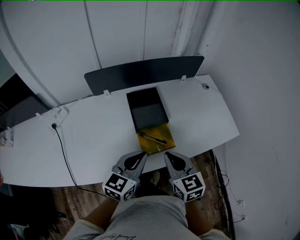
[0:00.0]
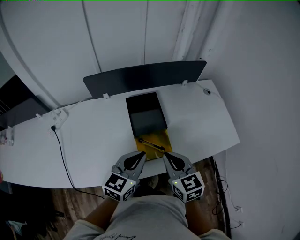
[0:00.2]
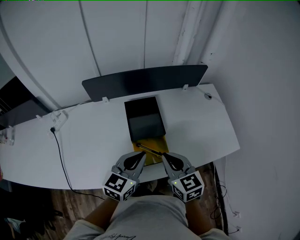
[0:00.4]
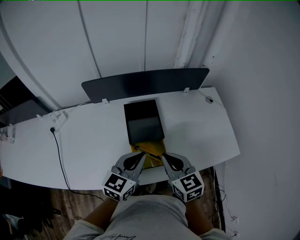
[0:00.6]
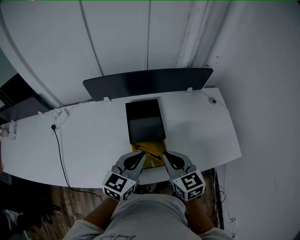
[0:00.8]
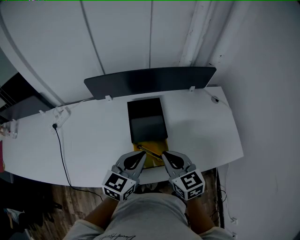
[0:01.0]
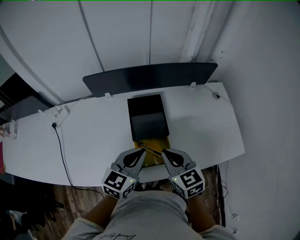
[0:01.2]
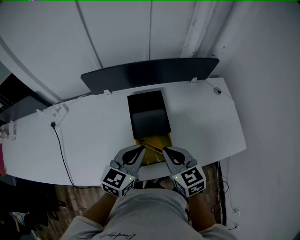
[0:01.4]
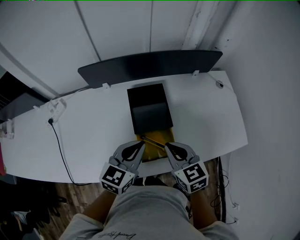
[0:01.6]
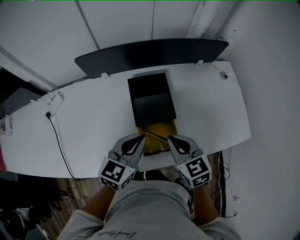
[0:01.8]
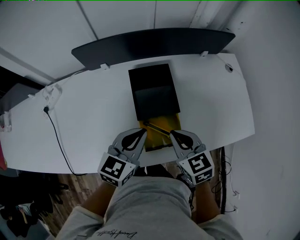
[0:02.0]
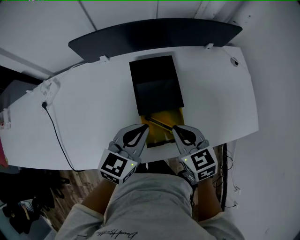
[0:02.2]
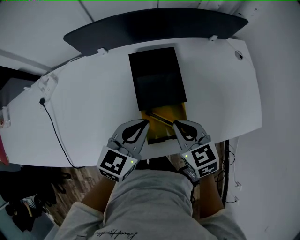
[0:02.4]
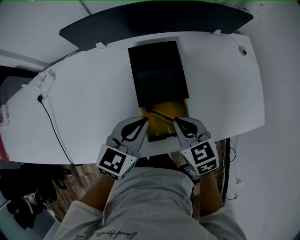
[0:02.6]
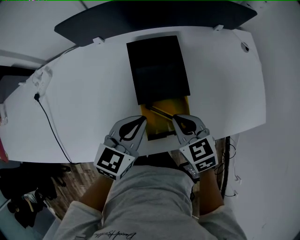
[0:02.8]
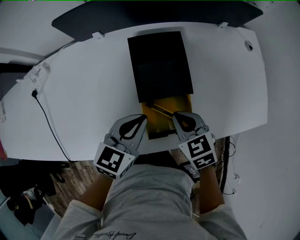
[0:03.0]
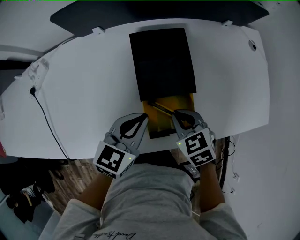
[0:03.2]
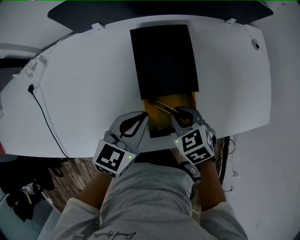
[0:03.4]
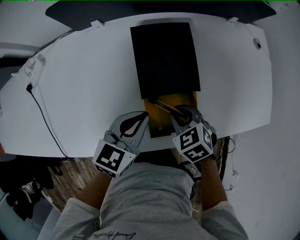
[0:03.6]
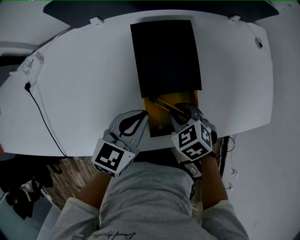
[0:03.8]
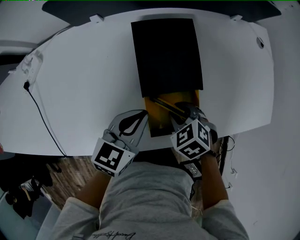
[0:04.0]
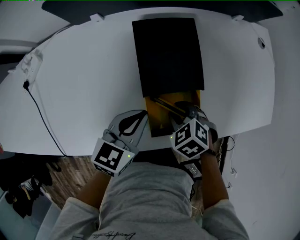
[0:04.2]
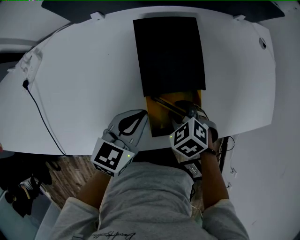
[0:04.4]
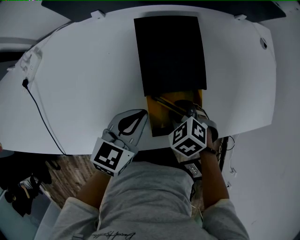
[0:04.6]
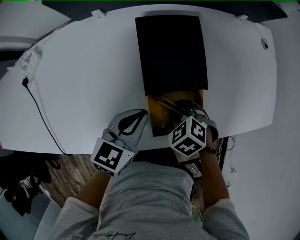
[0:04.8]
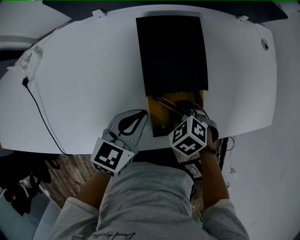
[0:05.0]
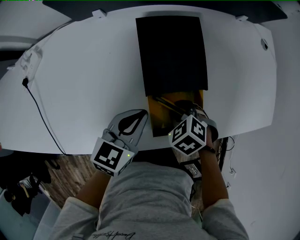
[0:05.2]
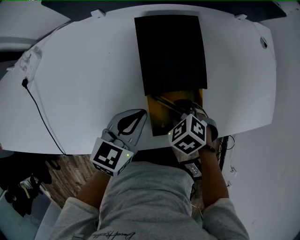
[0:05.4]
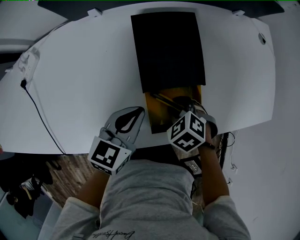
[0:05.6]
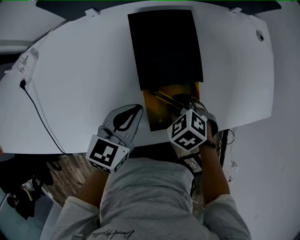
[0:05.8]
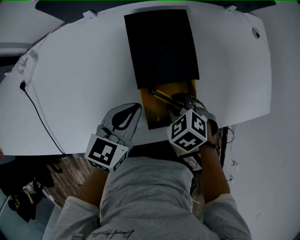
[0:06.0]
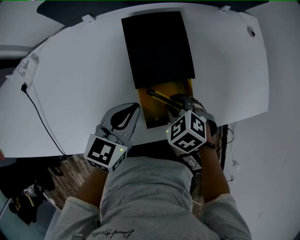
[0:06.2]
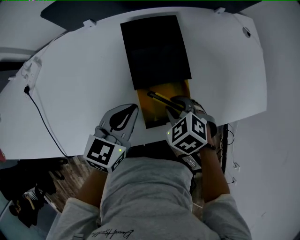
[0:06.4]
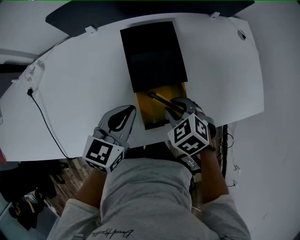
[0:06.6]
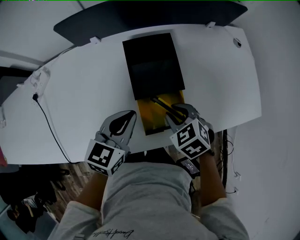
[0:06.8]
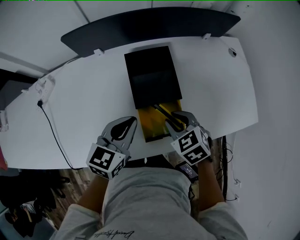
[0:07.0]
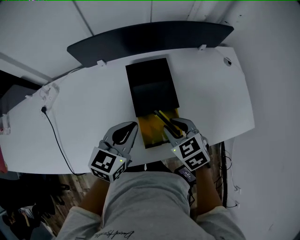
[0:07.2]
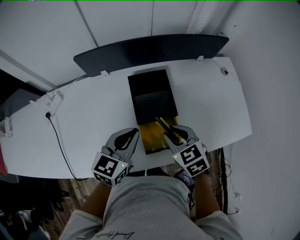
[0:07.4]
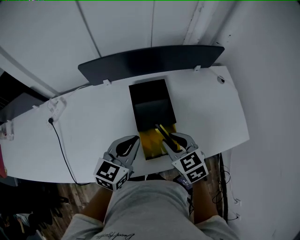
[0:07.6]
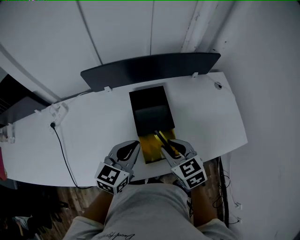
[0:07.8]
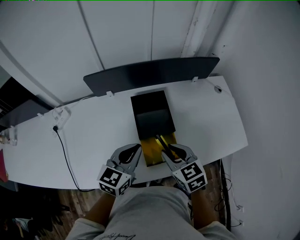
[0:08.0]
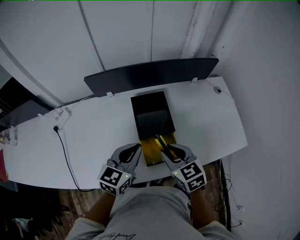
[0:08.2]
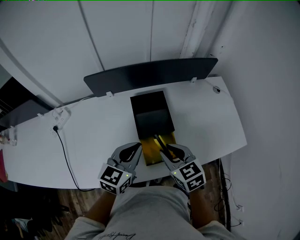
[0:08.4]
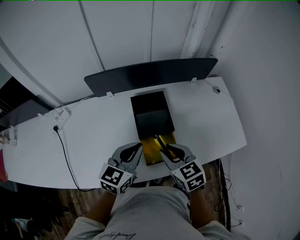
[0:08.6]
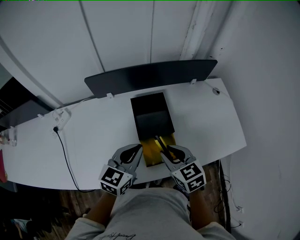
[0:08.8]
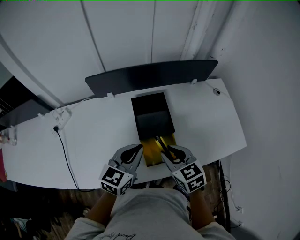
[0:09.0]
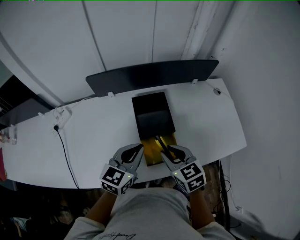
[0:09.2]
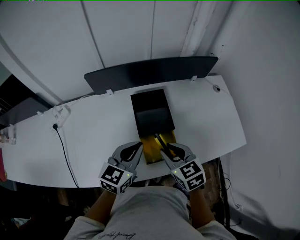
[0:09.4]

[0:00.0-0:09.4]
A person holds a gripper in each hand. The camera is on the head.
0:00.0 to 0:01.6: The two grippers go approximately 10 cm forward.
0:01.6 to 0:03.2: The grippers both shift downward by some 15 cm. The right gripper turns by about 20 degrees.
0:03.2 to 0:04.8: The right gripper moves downward, roughly 10 cm, turns by about 30 degrees, and opens its fingers.
0:04.8 to 0:06.2: The grippers move only a little.
0:06.2 to 0:07.8: The grippers both shift upward by approximately 15 cm. The right gripper tips its fingers upward by some 30 degrees.
0:07.8 to 0:09.4: The grippers stay close to where they were, moving slightly.

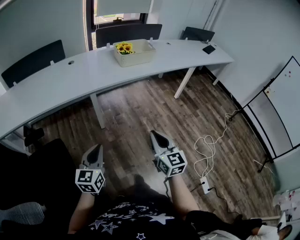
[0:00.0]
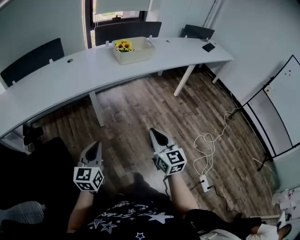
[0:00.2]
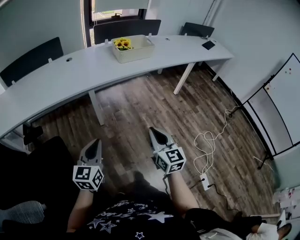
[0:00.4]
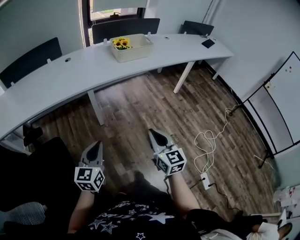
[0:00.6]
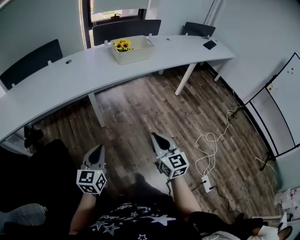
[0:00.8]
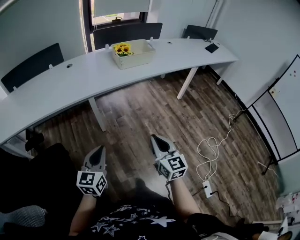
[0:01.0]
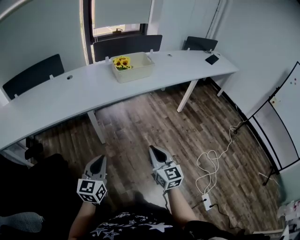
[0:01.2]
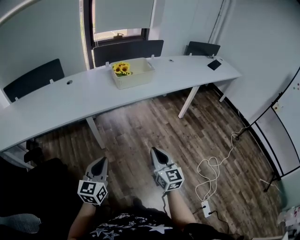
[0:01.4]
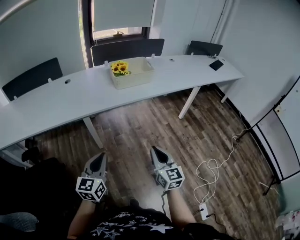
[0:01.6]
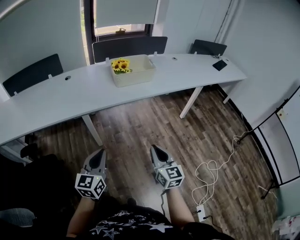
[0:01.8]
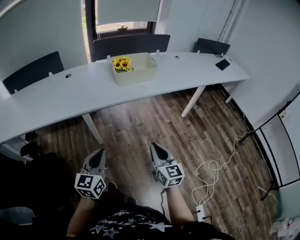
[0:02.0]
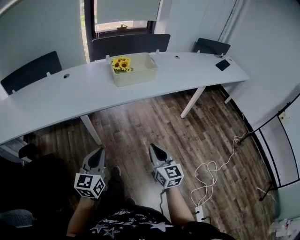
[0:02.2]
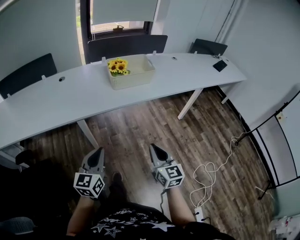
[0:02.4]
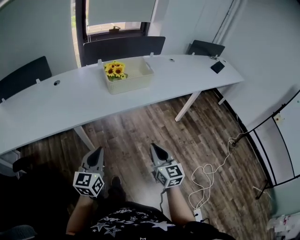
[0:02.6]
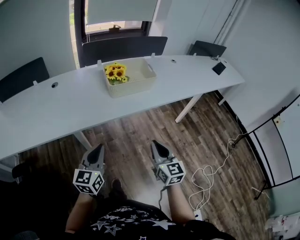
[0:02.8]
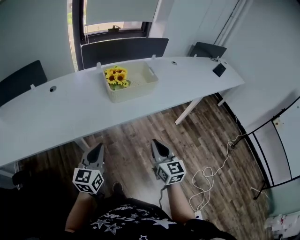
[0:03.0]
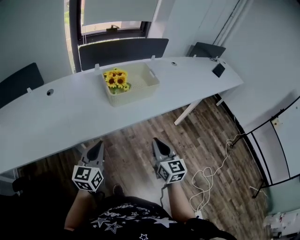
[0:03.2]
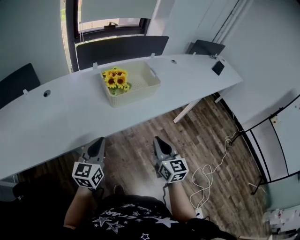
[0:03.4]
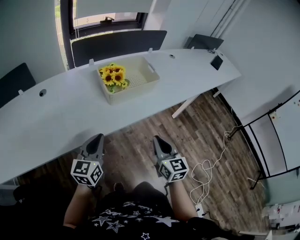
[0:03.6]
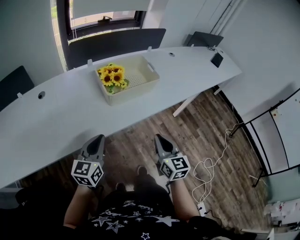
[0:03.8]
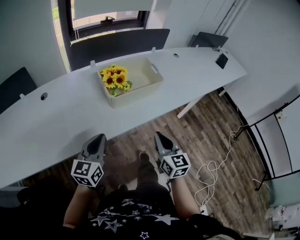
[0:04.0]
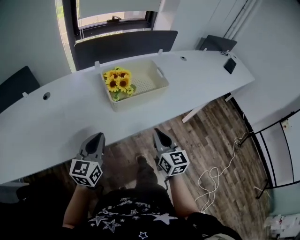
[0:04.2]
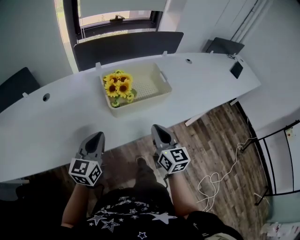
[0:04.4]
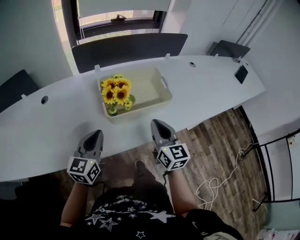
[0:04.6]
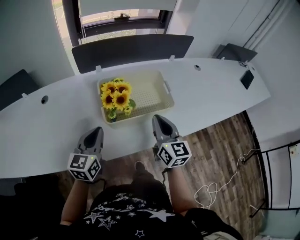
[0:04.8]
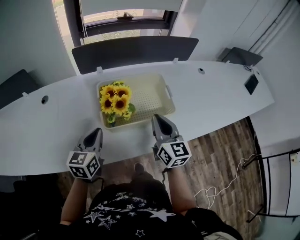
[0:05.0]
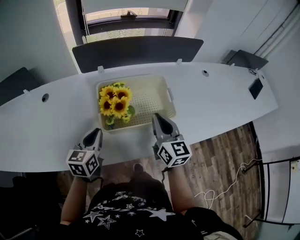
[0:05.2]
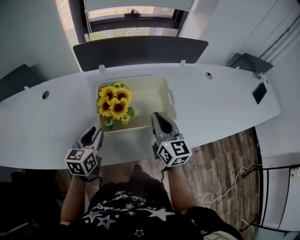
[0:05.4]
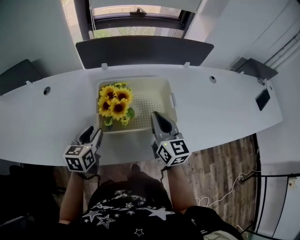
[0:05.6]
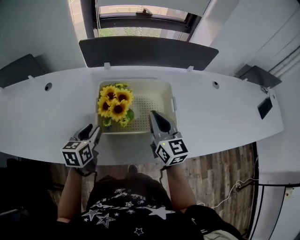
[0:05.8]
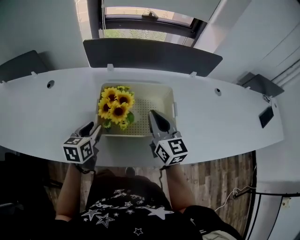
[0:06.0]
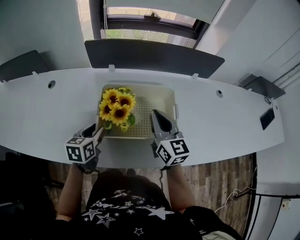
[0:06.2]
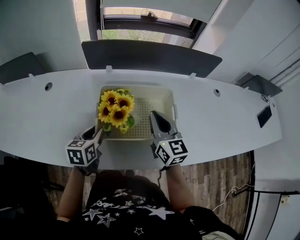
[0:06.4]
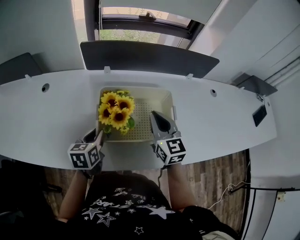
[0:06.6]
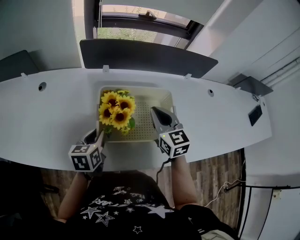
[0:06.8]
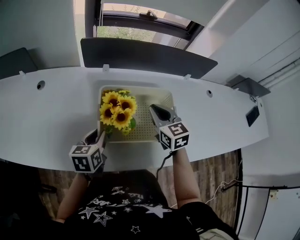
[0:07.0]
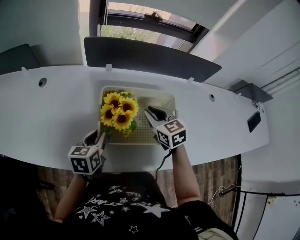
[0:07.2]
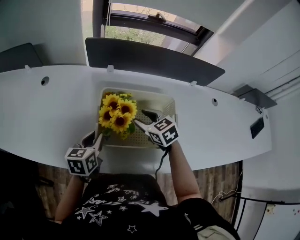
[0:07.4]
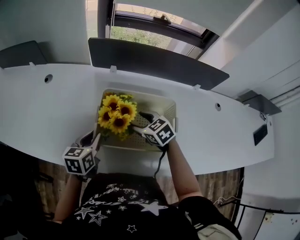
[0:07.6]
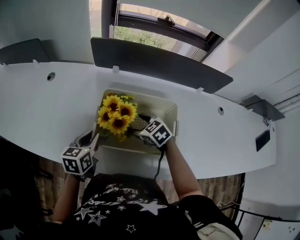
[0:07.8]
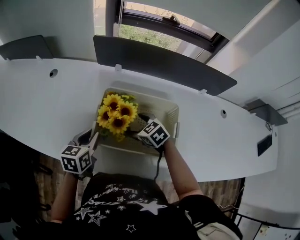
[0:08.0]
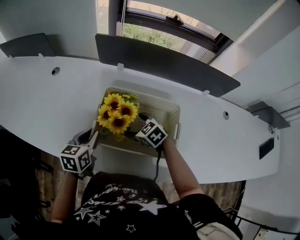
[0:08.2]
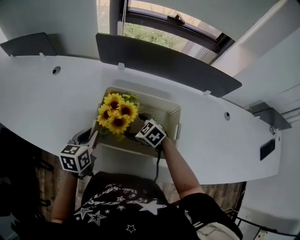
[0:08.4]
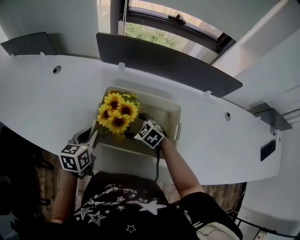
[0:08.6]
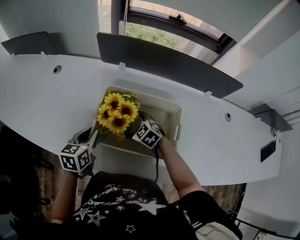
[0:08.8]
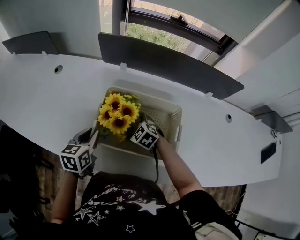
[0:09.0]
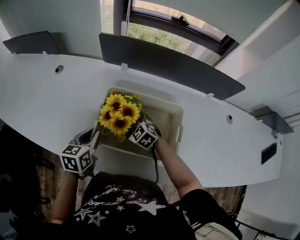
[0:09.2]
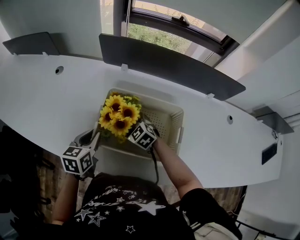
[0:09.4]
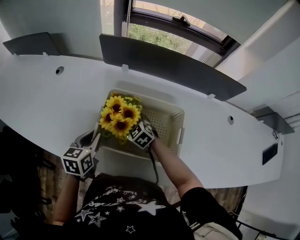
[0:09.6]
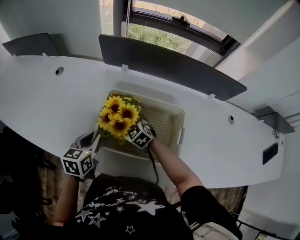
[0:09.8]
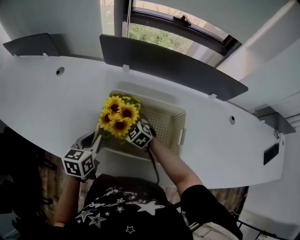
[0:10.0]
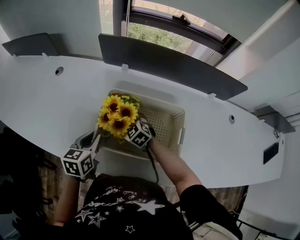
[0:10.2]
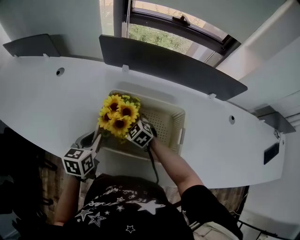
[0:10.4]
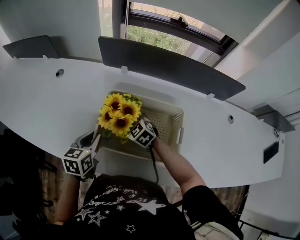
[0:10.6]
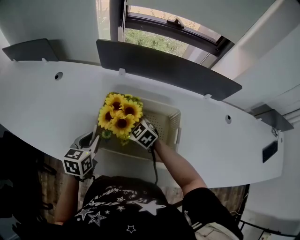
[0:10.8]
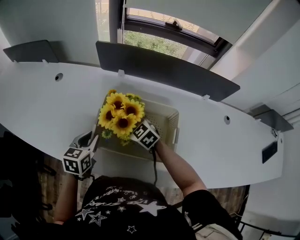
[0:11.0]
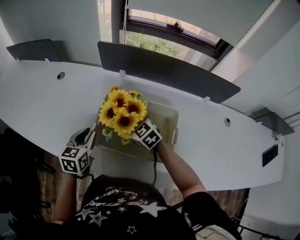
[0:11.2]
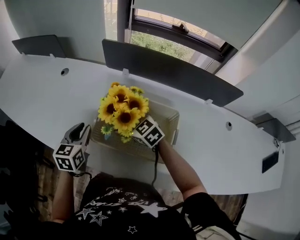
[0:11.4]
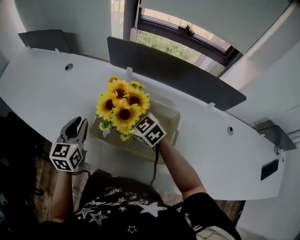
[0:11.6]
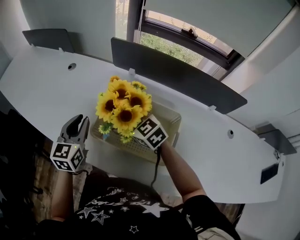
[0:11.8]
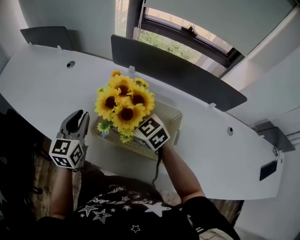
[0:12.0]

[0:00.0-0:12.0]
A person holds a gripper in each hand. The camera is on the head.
0:00.0 to 0:01.6: Both grippers travel together forward and to the right, approximately 20 cm.
0:01.6 to 0:03.0: The grippers both shift forward by approximately 25 cm.
0:03.0 to 0:04.4: The two grippers go about 20 cm forward.
0:04.4 to 0:06.0: The right gripper goes approximately 25 cm forward, and turns by some 20 degrees, while the left gripper shifts some 15 cm forward and downward, rotates roughly 30 degrees, and opens.
0:06.0 to 0:07.6: The right gripper moves downward, to the left and forward, about 15 cm, points its fingers about 40 degrees further downward, and opens its fingers.
0:07.6 to 0:09.0: The right gripper goes roughly 10 cm downward, changes its angle by some 20 degrees, and opens its fingers.
0:09.0 to 0:10.4: There are only small adjustments of the grippers.
0:10.4 to 0:12.0: The left gripper goes approximately 10 cm upward, and turns by approximately 30 degrees; the right gripper shifts roughly 15 cm upward.

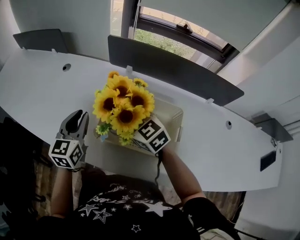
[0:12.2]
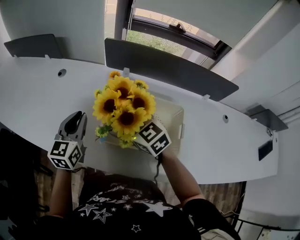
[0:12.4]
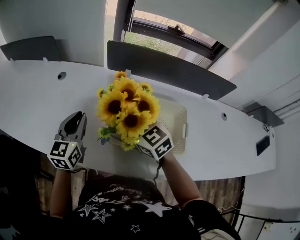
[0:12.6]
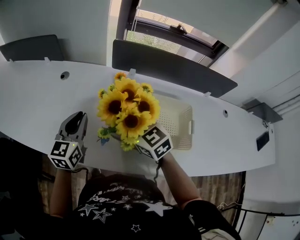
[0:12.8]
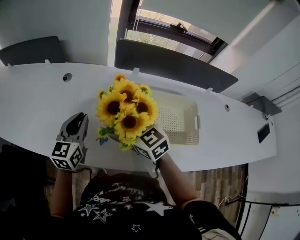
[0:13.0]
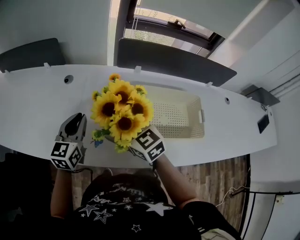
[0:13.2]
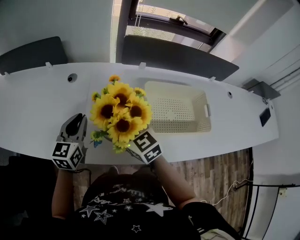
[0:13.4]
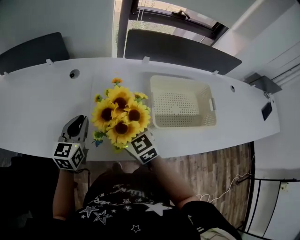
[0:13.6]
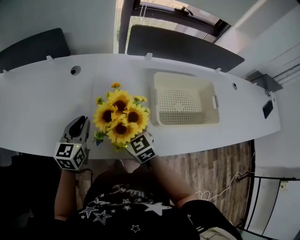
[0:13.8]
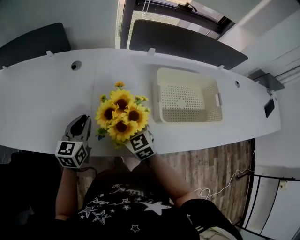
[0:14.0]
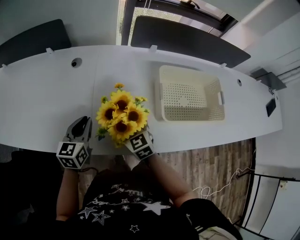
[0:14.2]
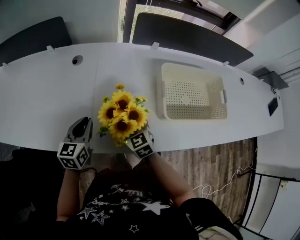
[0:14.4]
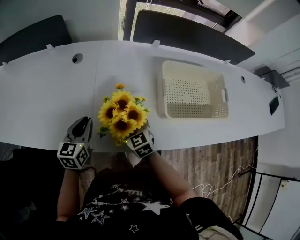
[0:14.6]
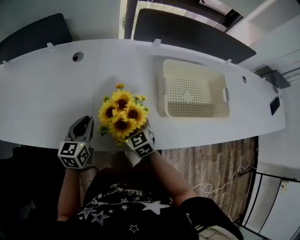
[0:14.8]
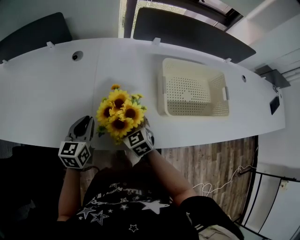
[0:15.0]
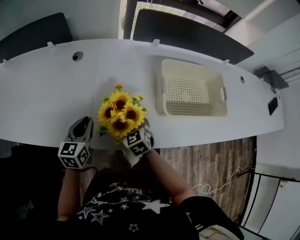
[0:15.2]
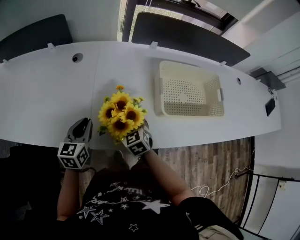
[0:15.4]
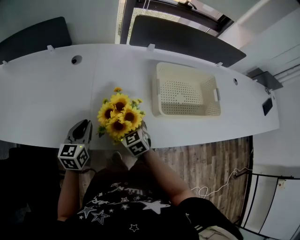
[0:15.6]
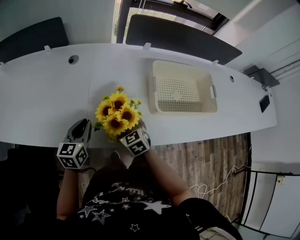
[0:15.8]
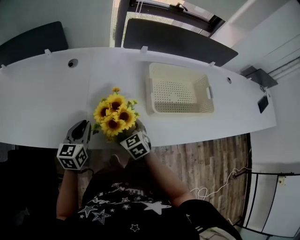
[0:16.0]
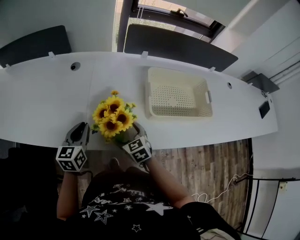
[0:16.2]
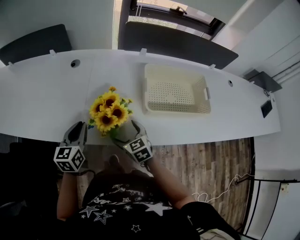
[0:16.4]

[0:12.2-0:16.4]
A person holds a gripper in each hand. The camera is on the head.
0:12.2 to 0:13.6: The two grippers go approximately 25 cm to the left. The right gripper swivels about 30 degrees.
0:13.6 to 0:15.0: The right gripper travels downward by some 15 cm; the left gripper is displaced downward by about 10 cm.
0:15.0 to 0:16.4: The left gripper is displaced backward by about 5 cm. The right gripper goes about 10 cm backward and to the right.
